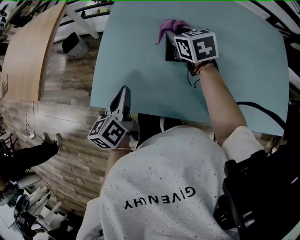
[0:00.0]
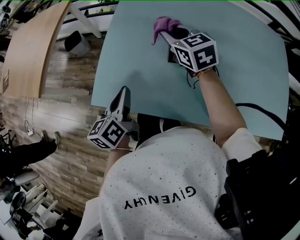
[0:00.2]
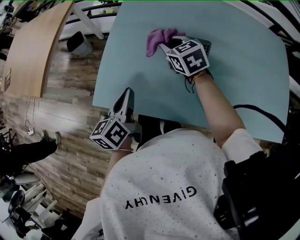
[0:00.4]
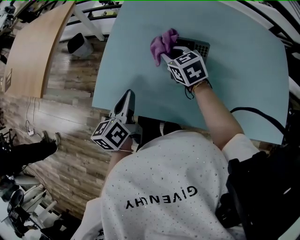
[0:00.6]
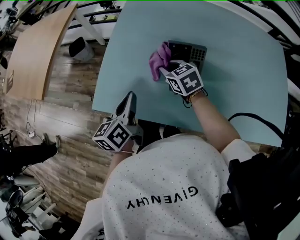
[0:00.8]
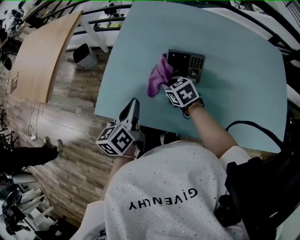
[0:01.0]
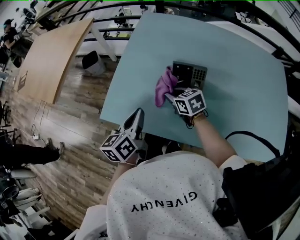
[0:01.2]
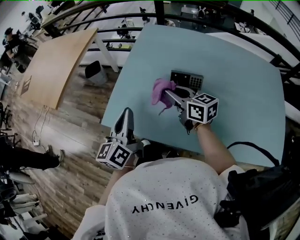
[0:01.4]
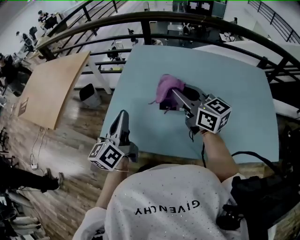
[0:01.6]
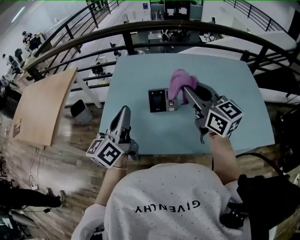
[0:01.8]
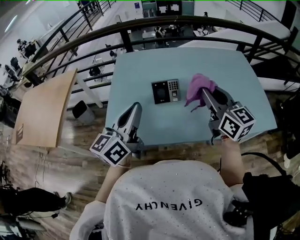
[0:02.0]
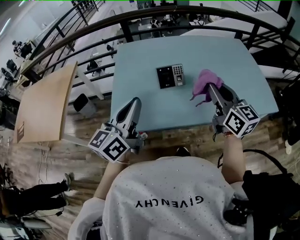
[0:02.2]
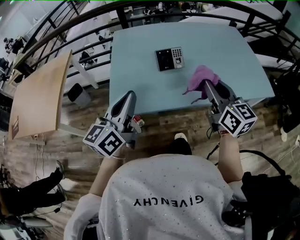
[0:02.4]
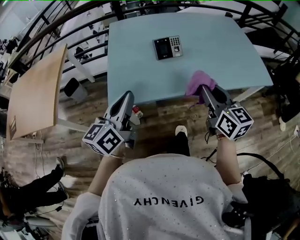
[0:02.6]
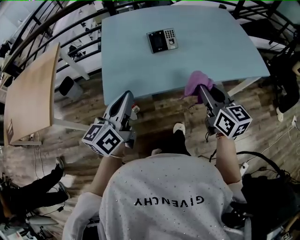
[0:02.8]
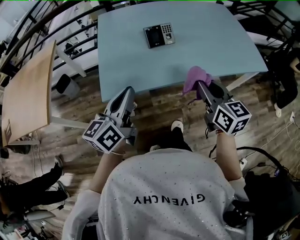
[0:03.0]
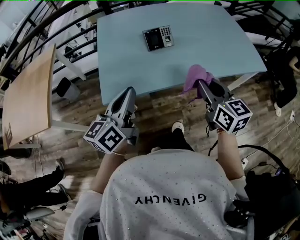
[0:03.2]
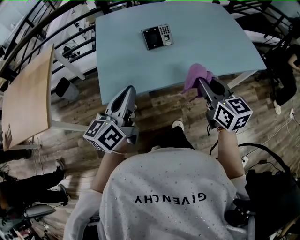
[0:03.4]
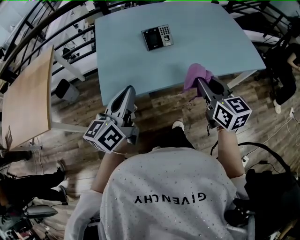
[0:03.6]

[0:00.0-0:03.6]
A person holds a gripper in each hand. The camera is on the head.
0:00.0 to 0:01.8: The right gripper is displaced upward and backward by approximately 30 cm, and angles its fingers upward, by approximately 40 degrees. The left gripper is displaced upward by about 20 cm, and swivels about 30 degrees.
0:01.8 to 0:03.6: The right gripper moves backward and downward, roughly 25 cm, and swivels about 30 degrees, while the left gripper is displaced backward by some 15 cm, and rotates approximately 20 degrees.

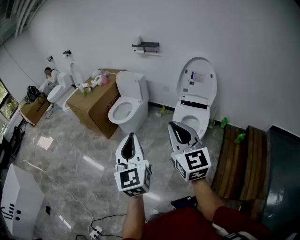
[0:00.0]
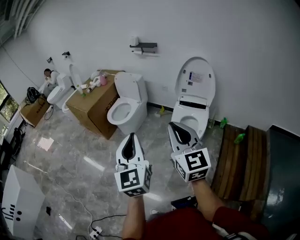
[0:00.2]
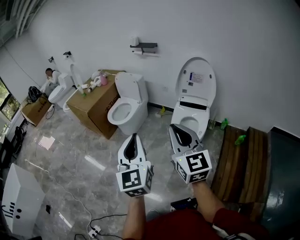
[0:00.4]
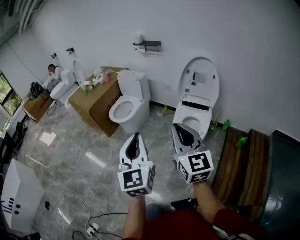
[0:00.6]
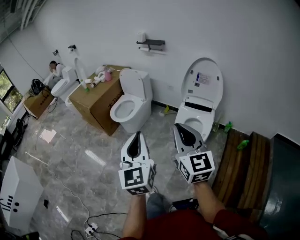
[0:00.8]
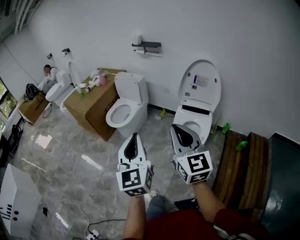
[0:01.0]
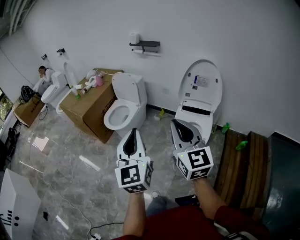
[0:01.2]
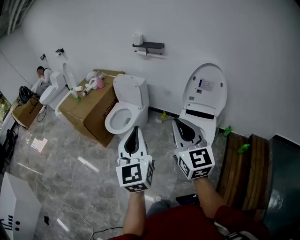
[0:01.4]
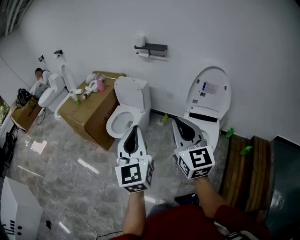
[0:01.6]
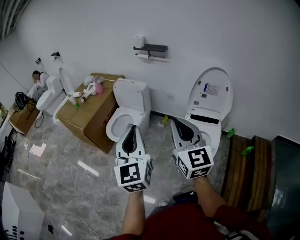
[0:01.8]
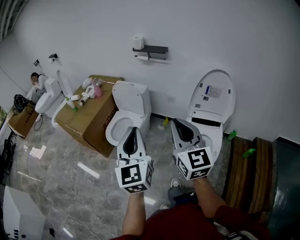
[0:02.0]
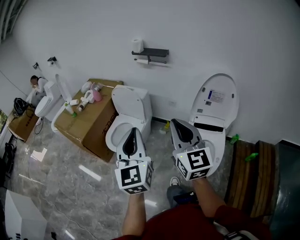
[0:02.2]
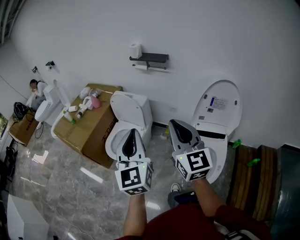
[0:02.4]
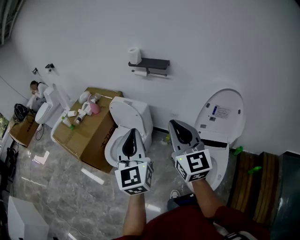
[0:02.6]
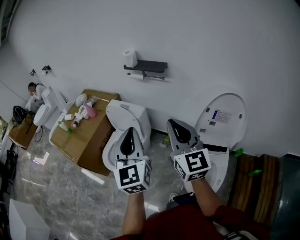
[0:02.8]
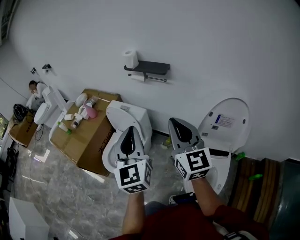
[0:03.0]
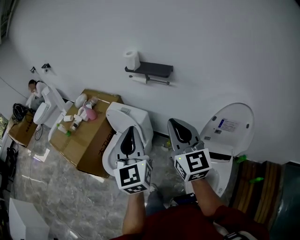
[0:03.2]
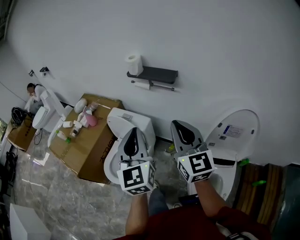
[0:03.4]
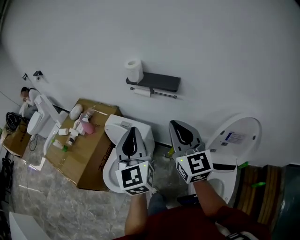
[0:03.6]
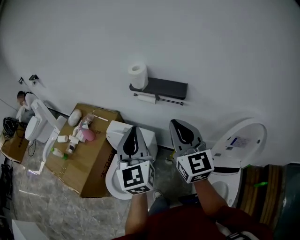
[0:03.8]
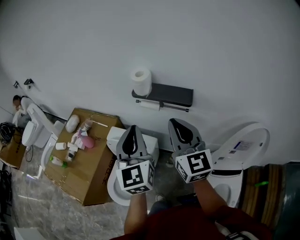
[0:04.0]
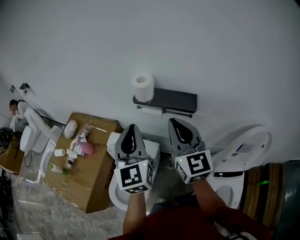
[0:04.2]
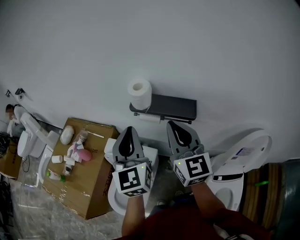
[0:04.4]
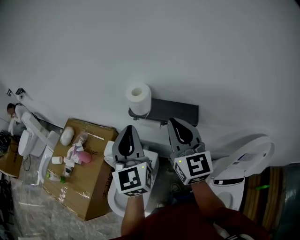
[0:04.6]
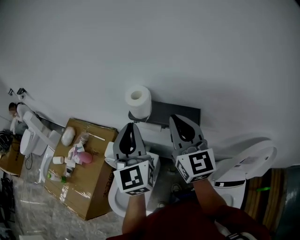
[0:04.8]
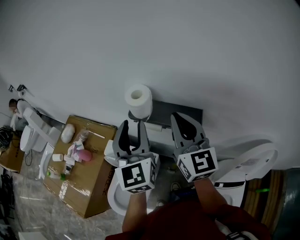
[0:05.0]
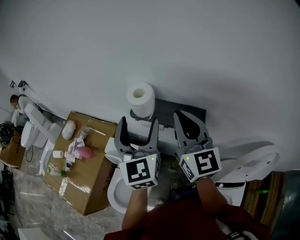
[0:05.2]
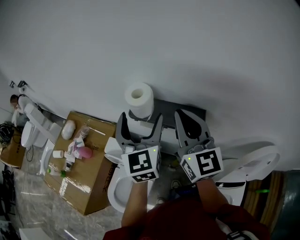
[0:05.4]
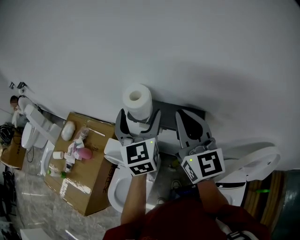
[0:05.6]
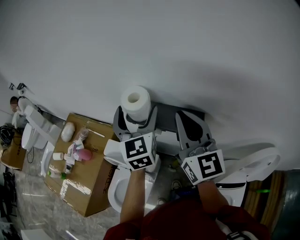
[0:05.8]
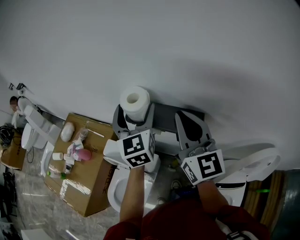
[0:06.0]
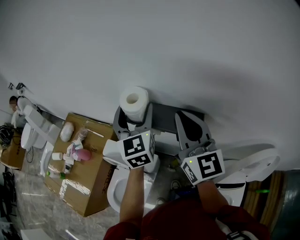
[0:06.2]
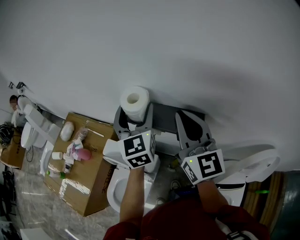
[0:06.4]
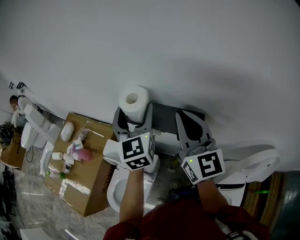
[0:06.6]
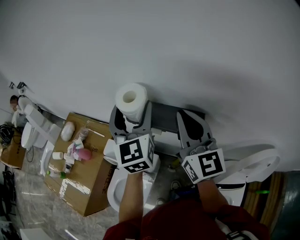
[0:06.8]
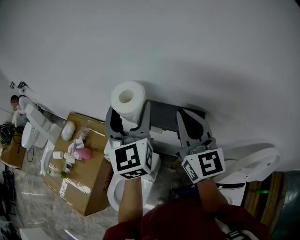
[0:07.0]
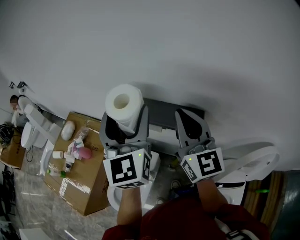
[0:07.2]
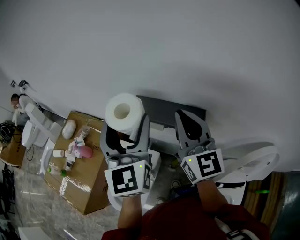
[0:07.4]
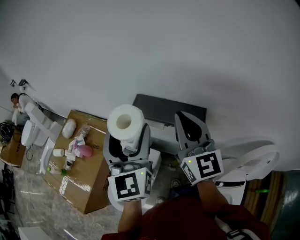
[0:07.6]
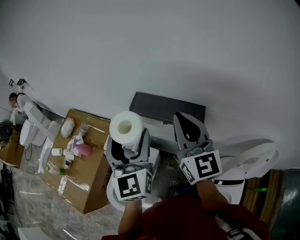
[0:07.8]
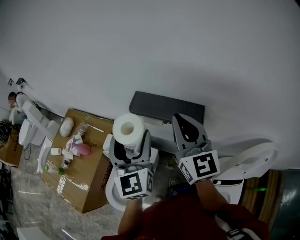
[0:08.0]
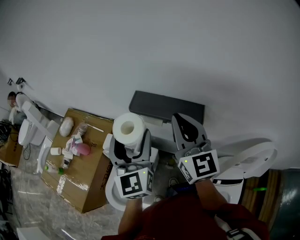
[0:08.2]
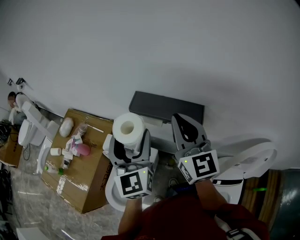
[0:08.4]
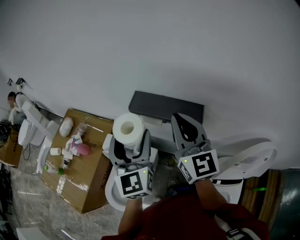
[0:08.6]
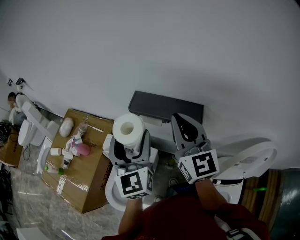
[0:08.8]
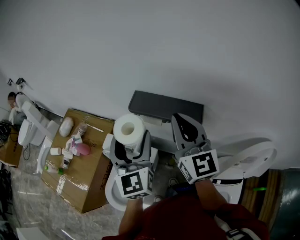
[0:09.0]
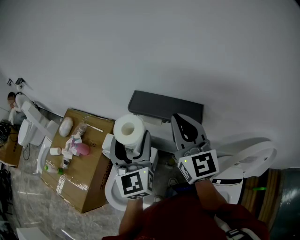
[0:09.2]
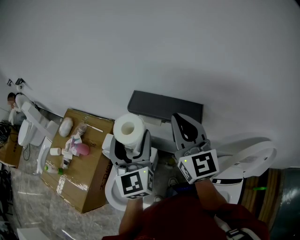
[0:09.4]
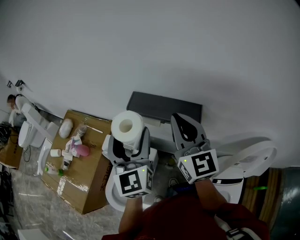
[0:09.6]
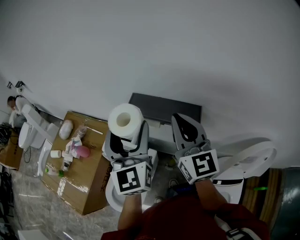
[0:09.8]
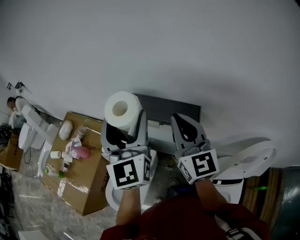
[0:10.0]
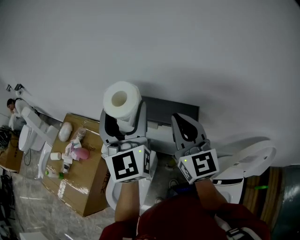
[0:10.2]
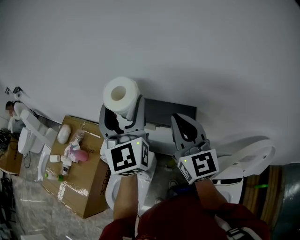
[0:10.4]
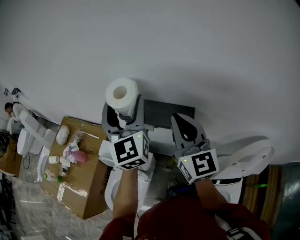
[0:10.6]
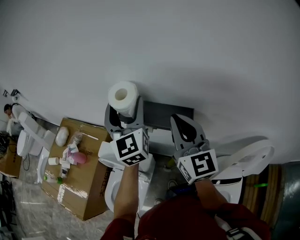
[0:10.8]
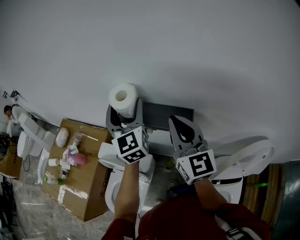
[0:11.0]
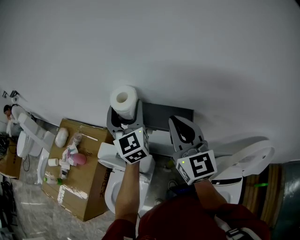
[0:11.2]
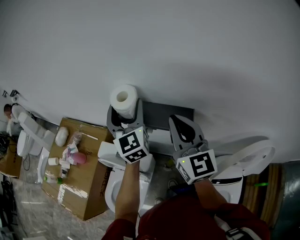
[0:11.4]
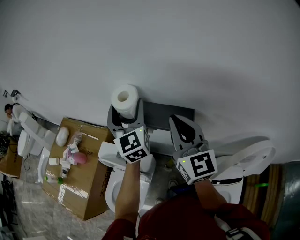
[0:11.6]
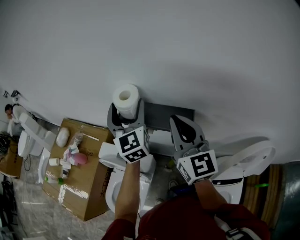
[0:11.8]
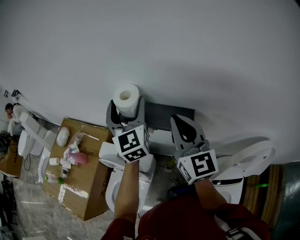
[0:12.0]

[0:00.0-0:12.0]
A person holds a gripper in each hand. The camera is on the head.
0:00.0 to 0:01.6: Both grippers travel together forward, some 30 cm.
0:01.6 to 0:03.0: The pair of grippers is taken forward, about 40 cm.
0:03.0 to 0:04.4: Both grippers travel together forward, some 40 cm.
0:04.4 to 0:06.0: The right gripper goes some 10 cm forward and to the right; the left gripper heads forward, covering approximately 20 cm, and opens its fingers.
0:06.0 to 0:07.6: The left gripper goes approximately 15 cm backward and upward.
0:07.6 to 0:09.0: The left gripper heads downward, covering approximately 5 cm.
0:09.0 to 0:10.4: The left gripper travels upward and forward by roughly 10 cm.
0:10.4 to 0:12.0: The left gripper moves downward and forward, roughly 10 cm.

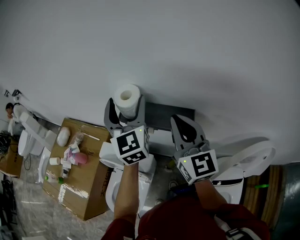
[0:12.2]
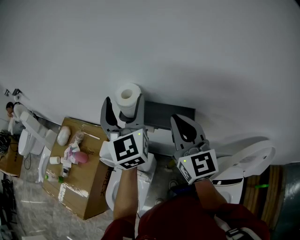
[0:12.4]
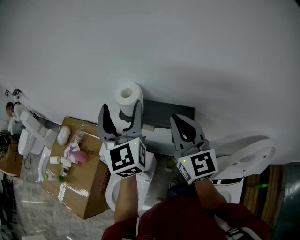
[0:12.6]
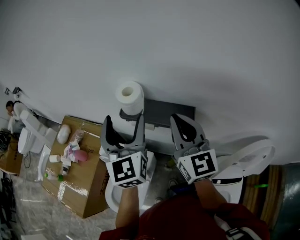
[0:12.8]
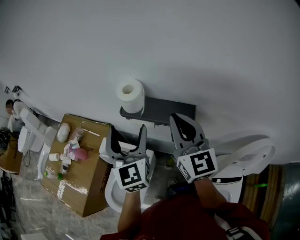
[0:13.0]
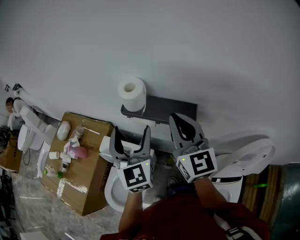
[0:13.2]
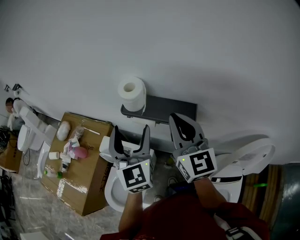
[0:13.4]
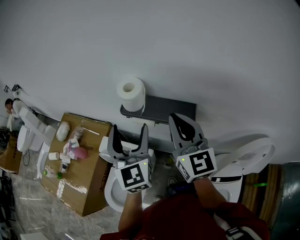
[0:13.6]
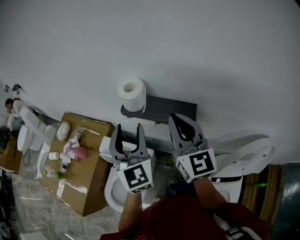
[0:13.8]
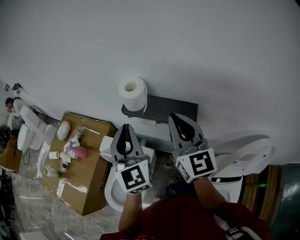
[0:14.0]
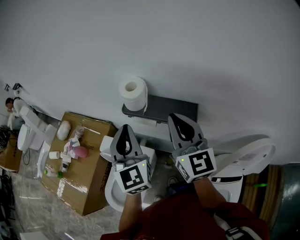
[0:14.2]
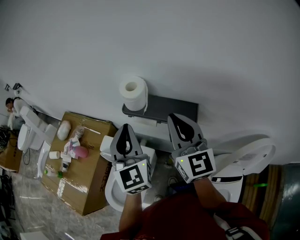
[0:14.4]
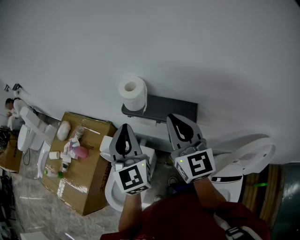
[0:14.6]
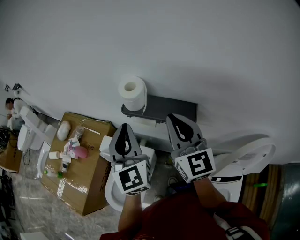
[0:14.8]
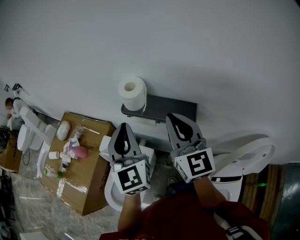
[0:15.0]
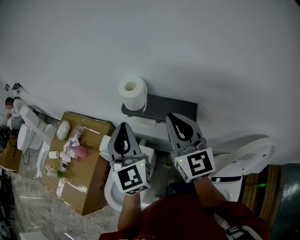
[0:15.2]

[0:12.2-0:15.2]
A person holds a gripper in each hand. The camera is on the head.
0:12.2 to 0:13.8: The left gripper heads backward, covering roughly 10 cm.
0:13.8 to 0:15.2: The left gripper closes.

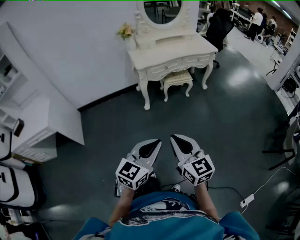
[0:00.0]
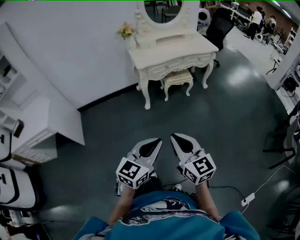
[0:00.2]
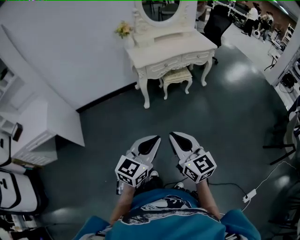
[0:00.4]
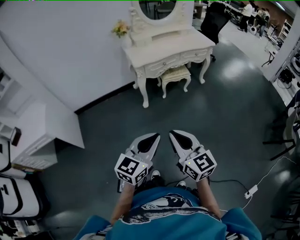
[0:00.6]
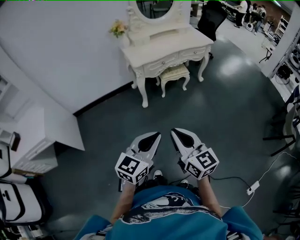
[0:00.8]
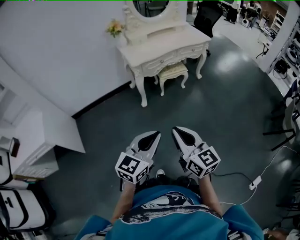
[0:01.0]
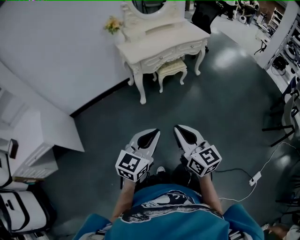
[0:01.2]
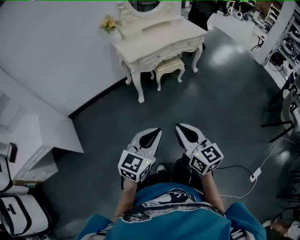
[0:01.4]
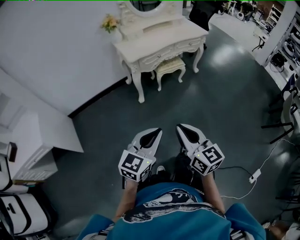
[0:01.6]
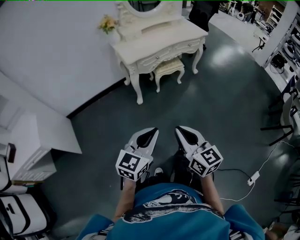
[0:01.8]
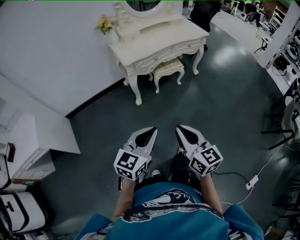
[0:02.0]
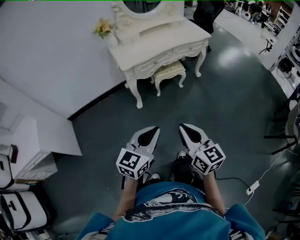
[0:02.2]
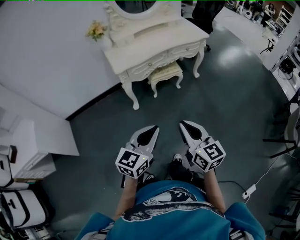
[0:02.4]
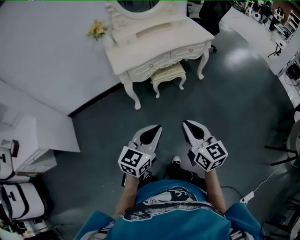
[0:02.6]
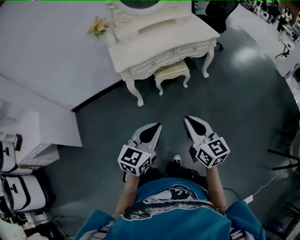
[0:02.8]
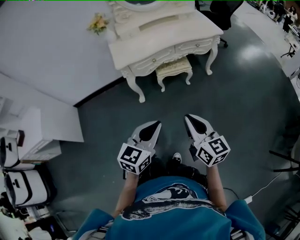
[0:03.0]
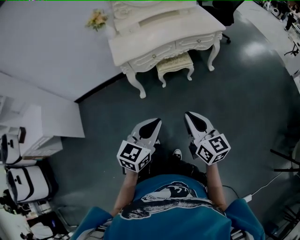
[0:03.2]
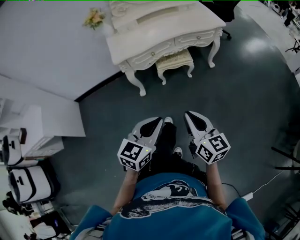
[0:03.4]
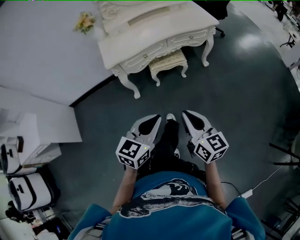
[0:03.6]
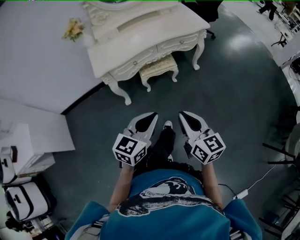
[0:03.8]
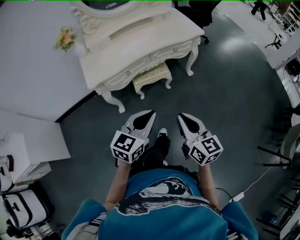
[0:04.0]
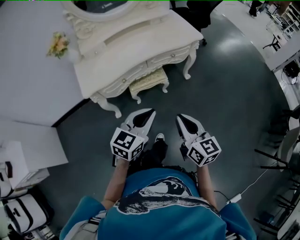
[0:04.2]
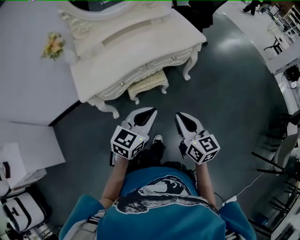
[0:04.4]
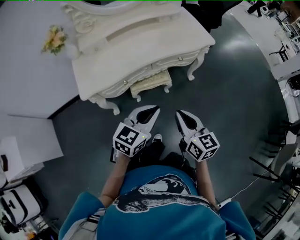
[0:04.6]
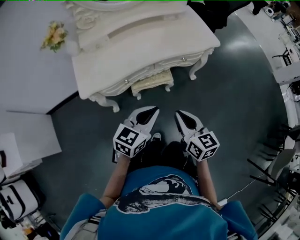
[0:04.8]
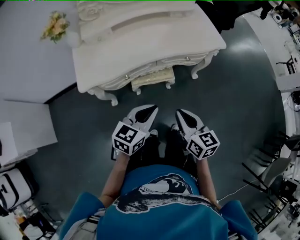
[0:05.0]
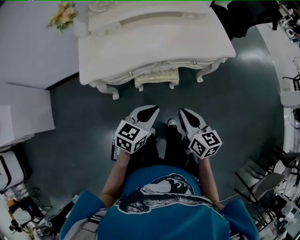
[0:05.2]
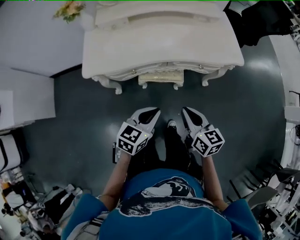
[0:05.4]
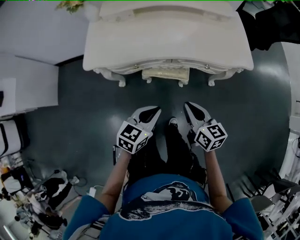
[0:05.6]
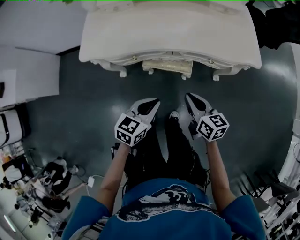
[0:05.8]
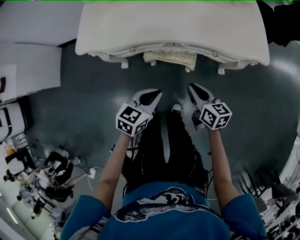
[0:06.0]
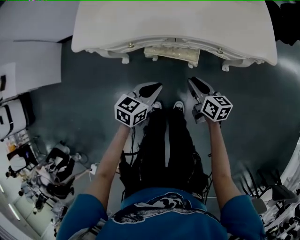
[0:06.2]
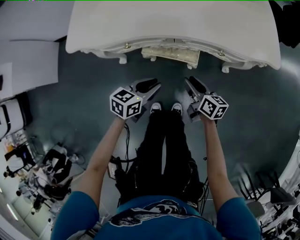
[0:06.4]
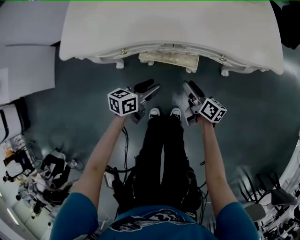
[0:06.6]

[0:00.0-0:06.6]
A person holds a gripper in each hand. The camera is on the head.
0:00.0 to 0:01.6: The two grippers go approximately 10 cm to the left and forward.
0:01.6 to 0:03.2: The two grippers go roughly 30 cm forward and to the right.
0:03.2 to 0:05.0: The grippers both shift forward by roughly 35 cm.
0:05.0 to 0:06.6: Both grippers move downward and forward, about 30 cm. The right gripper swivels some 40 degrees, and opens its fingers. Meanwhile the left gripper turns by about 40 degrees.
